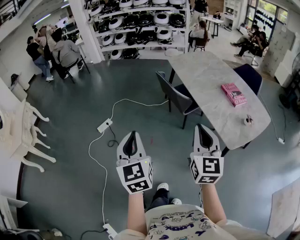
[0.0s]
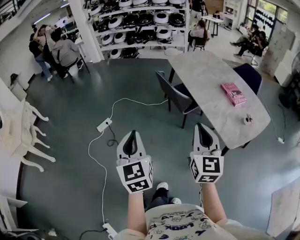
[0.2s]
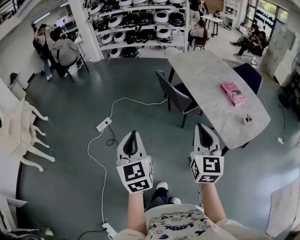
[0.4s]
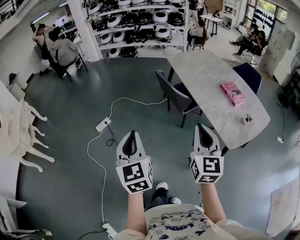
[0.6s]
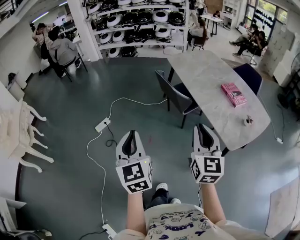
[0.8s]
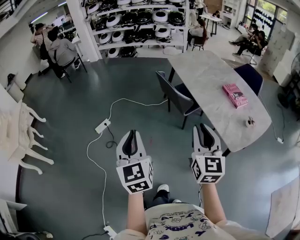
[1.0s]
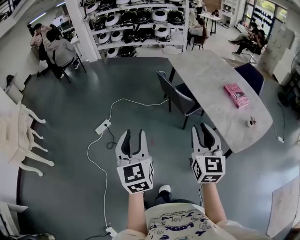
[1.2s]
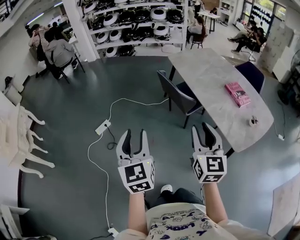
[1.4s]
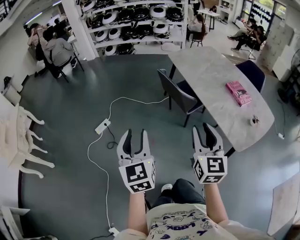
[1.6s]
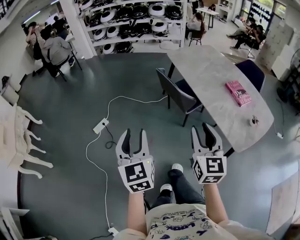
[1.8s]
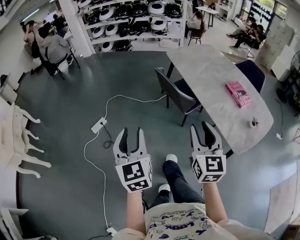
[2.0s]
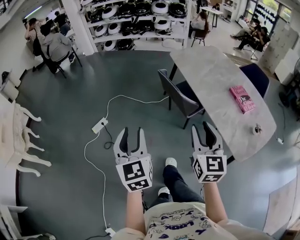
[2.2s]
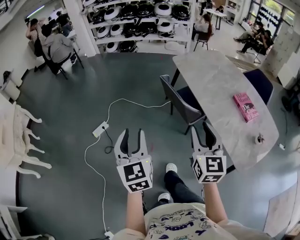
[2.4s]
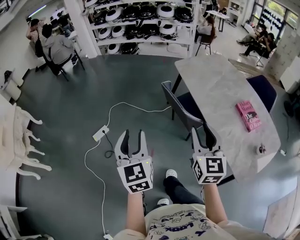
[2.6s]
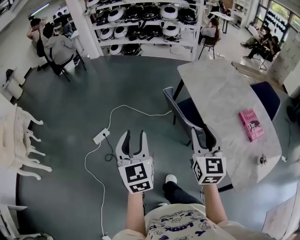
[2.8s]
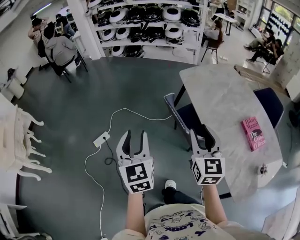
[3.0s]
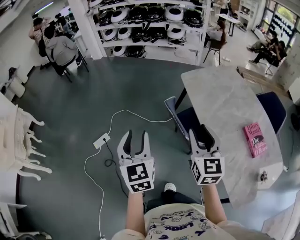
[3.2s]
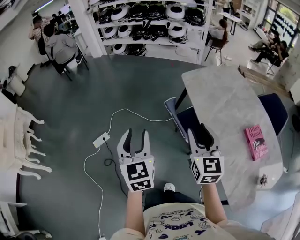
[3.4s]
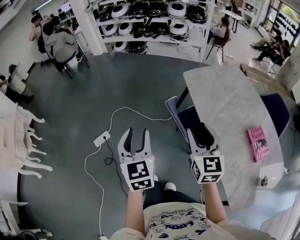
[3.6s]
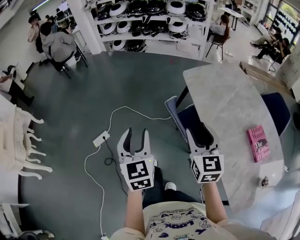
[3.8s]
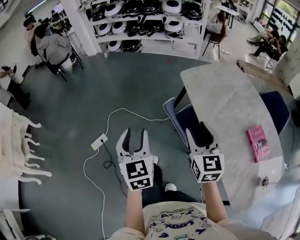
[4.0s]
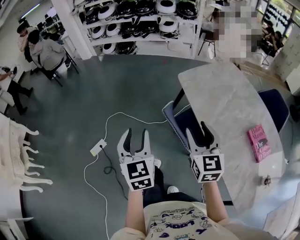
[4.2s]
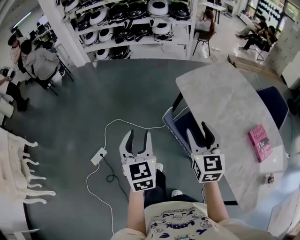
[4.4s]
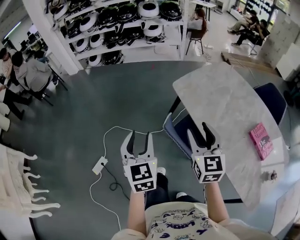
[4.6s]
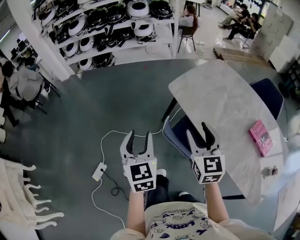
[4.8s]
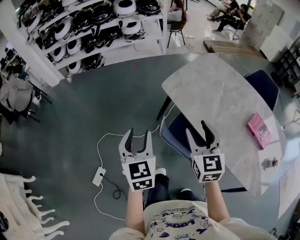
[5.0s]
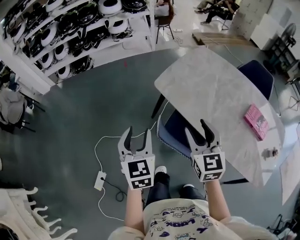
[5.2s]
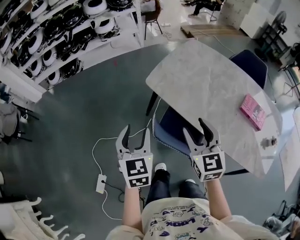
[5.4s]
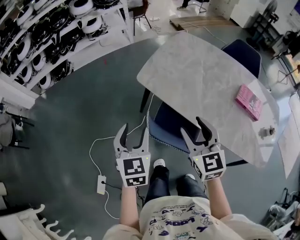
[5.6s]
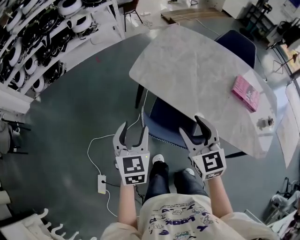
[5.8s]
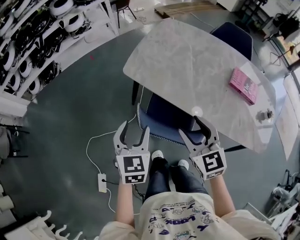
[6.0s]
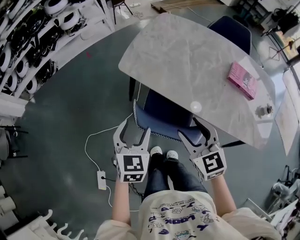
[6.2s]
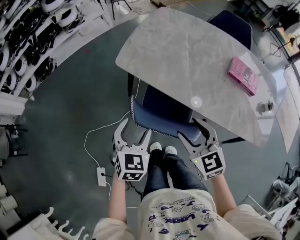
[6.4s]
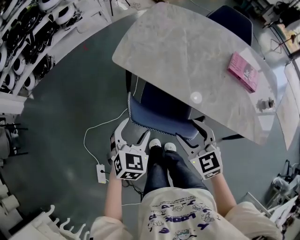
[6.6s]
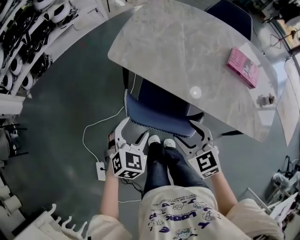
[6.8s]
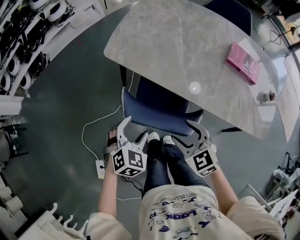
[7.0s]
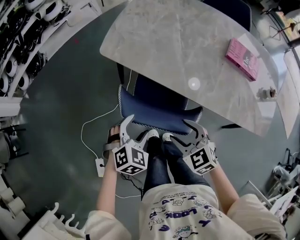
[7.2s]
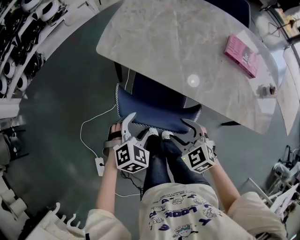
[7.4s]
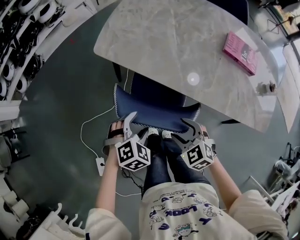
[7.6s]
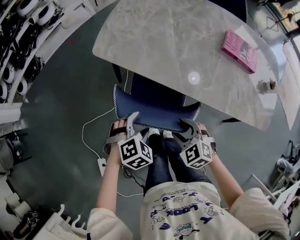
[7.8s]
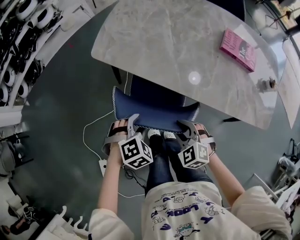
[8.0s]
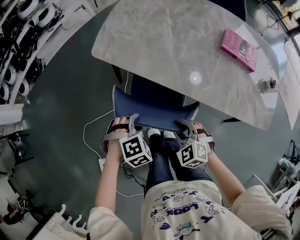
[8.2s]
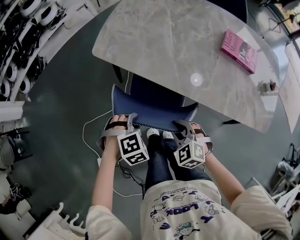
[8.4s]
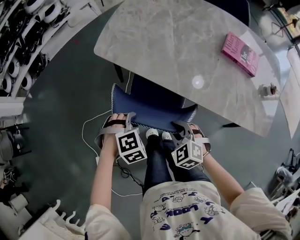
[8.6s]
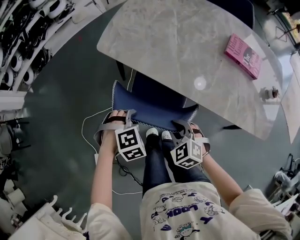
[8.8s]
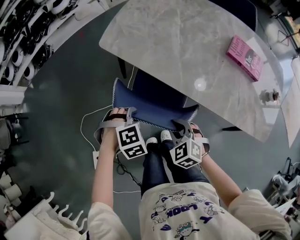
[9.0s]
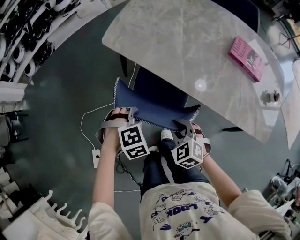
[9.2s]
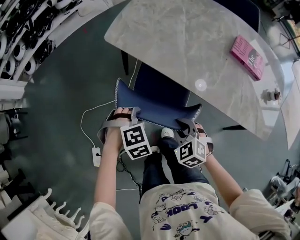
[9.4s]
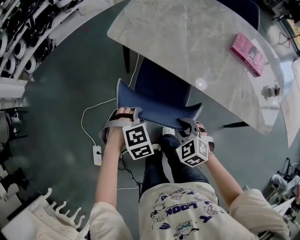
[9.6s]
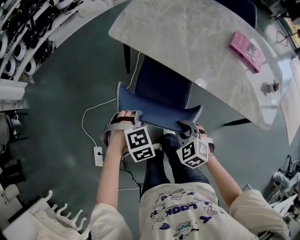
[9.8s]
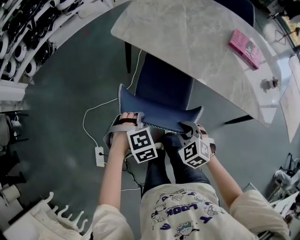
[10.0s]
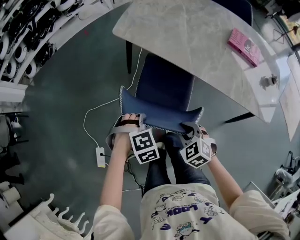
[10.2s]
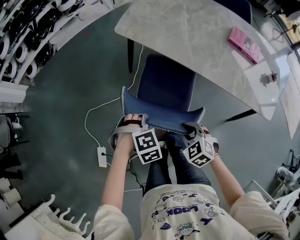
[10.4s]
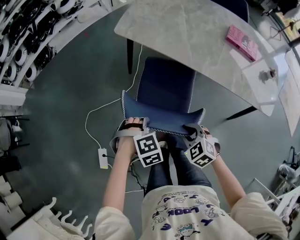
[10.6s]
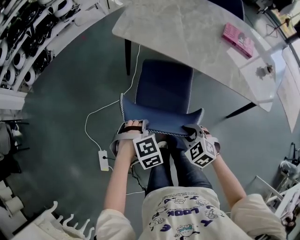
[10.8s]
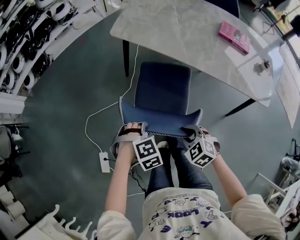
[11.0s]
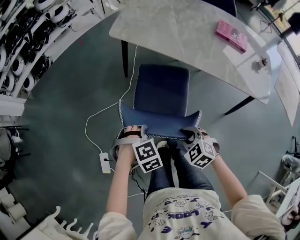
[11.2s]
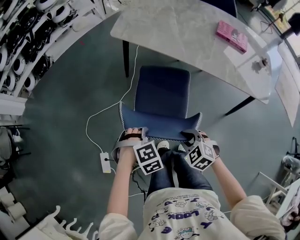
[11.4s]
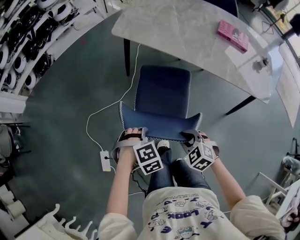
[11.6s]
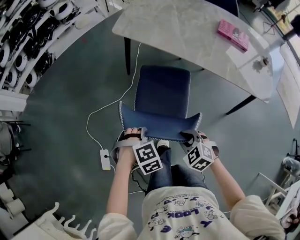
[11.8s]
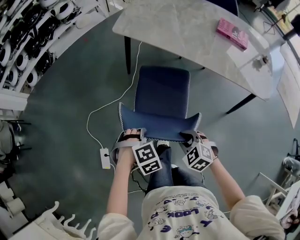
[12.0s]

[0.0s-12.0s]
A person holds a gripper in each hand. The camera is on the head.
0.0s to 1.6s: The right gripper moves forward and to the left, about 10 cm, and opens its fingers. The left gripper travels forward by some 10 cm, and opens up.
1.6s to 3.0s: Both grippers move forward, roughly 35 cm.
3.0s to 4.4s: The grippers both shift forward by some 25 cm.
4.4s to 6.0s: The right gripper heads downward, covering approximately 10 cm, and turns by approximately 20 degrees; the left gripper moves approximately 25 cm, and rotates about 50 degrees.
6.0s to 7.6s: The right gripper moves downward and backward, about 20 cm, and rotates roughly 30 degrees, while the left gripper goes approximately 20 cm downward and to the right, and tips its fingers downward by roughly 30 degrees.
7.6s to 9.0s: The right gripper closes. Meanwhile the left gripper turns by approximately 20 degrees, and closes its fingers.
9.0s to 10.4s: Both grippers move backward and to the left, about 15 cm.
10.4s to 12.0s: The right gripper ends up approximately 15 cm from where it was. The left gripper moves some 15 cm.

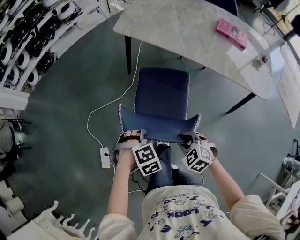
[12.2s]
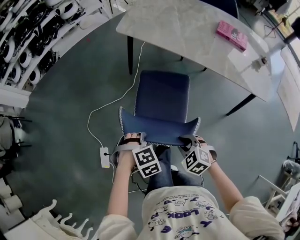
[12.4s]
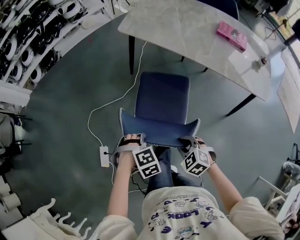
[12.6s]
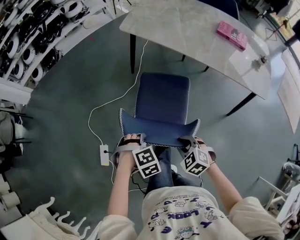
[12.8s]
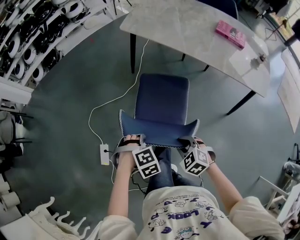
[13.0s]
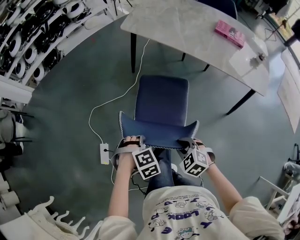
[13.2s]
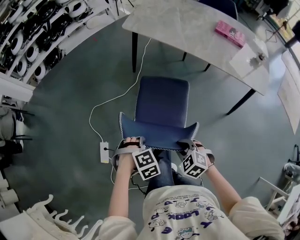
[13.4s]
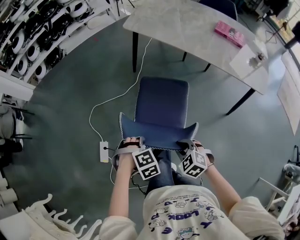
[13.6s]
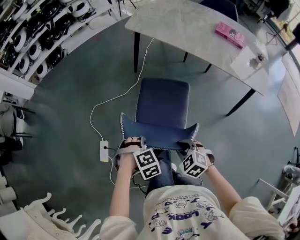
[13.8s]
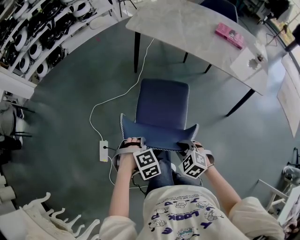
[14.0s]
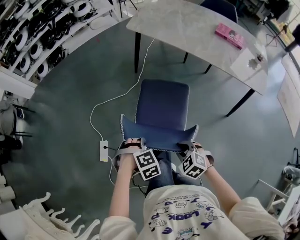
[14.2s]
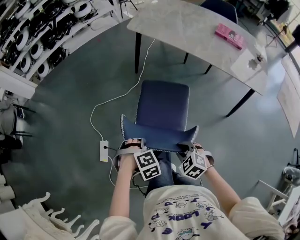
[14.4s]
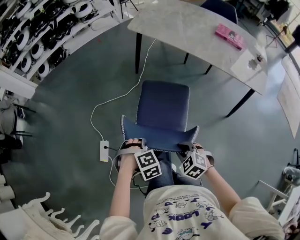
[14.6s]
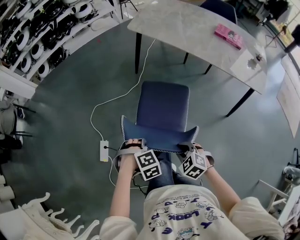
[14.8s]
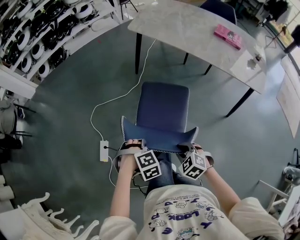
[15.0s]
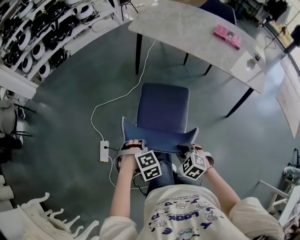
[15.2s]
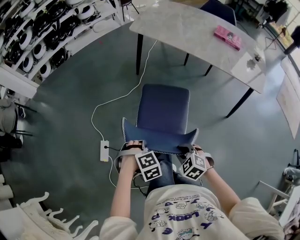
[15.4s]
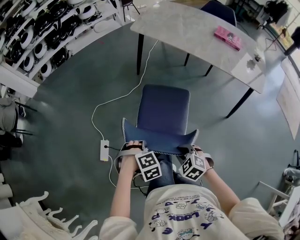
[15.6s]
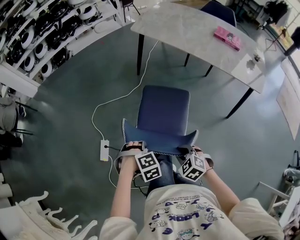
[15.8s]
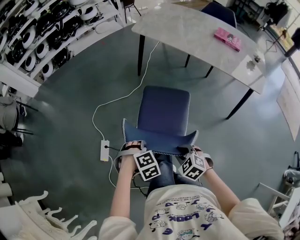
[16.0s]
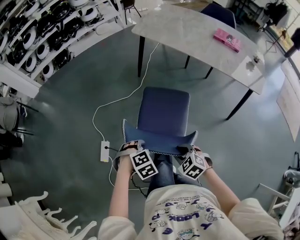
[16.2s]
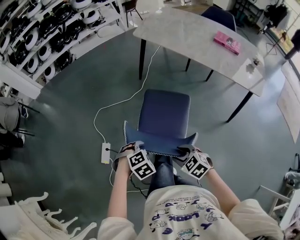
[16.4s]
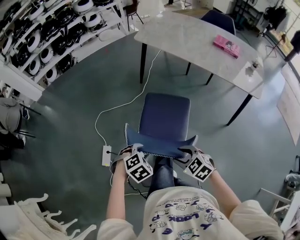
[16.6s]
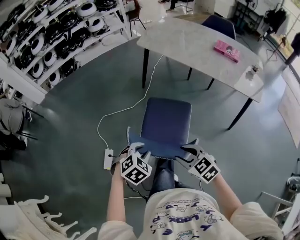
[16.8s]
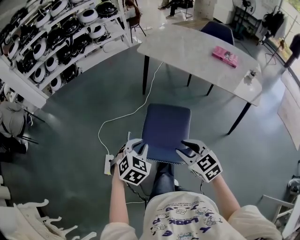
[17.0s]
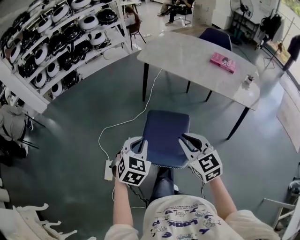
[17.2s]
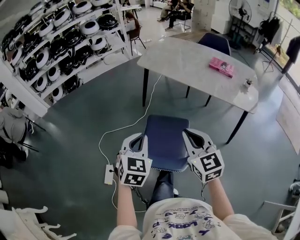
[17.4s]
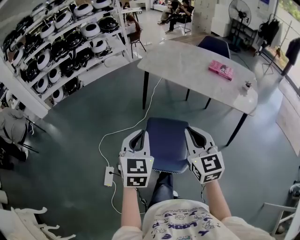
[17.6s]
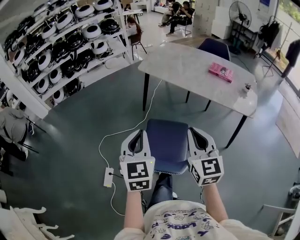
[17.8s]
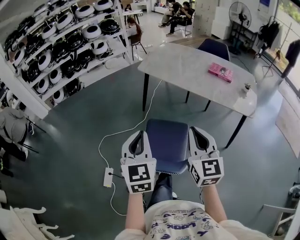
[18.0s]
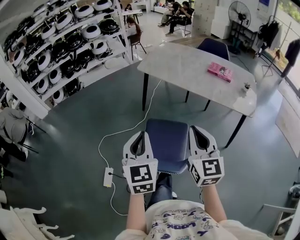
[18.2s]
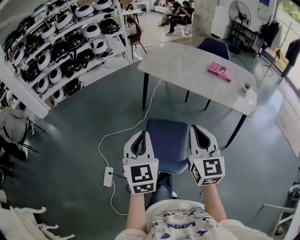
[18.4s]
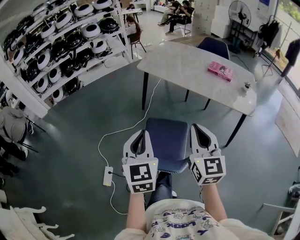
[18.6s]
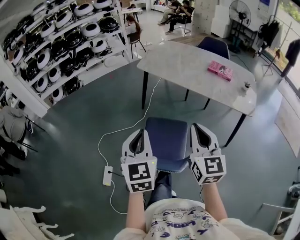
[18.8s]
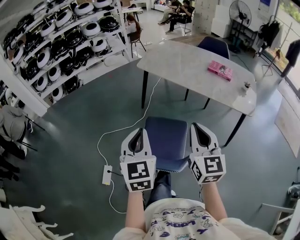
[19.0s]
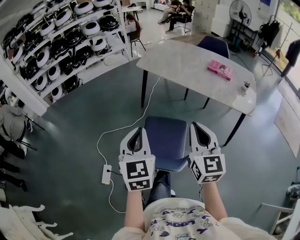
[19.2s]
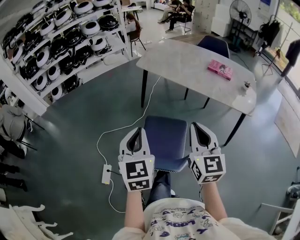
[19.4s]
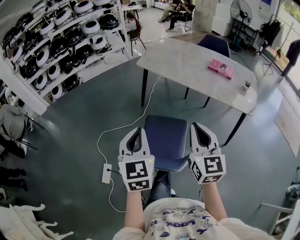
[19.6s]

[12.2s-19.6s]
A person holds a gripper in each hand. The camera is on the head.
12.2s to 13.6s: The left gripper shifts by approximately 15 cm. Meanwhile the right gripper moves some 15 cm.
13.6s to 15.2s: The left gripper changes place by some 5 cm, while the right gripper ends up about 5 cm from where it was.
15.2s to 16.6s: The left gripper rotates about 20 degrees; the right gripper changes place by about 5 cm, and opens its fingers.
16.6s to 18.2s: Both grippers move upward, roughly 30 cm. The right gripper tips its fingers upward by some 50 degrees, and closes its fingers. Meanwhile the left gripper points its fingers approximately 60 degrees further upward, and closes up.
18.2s to 19.6s: The grippers stay close to where they were, moving slightly.

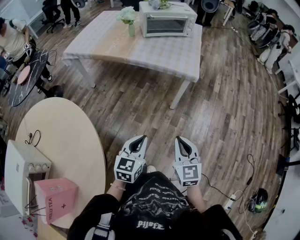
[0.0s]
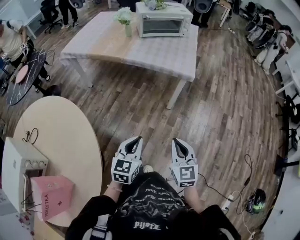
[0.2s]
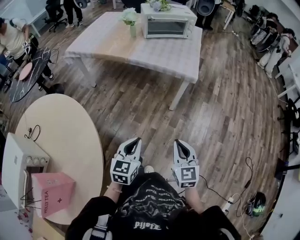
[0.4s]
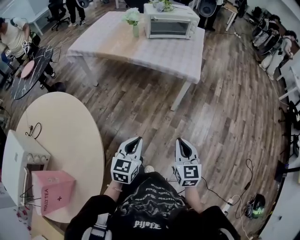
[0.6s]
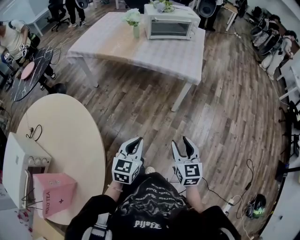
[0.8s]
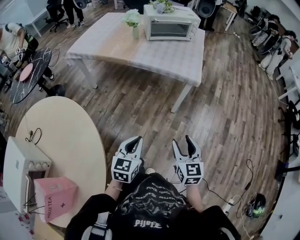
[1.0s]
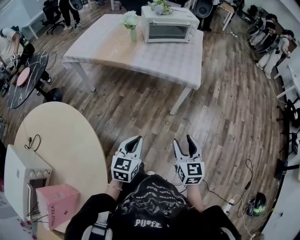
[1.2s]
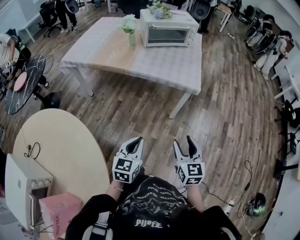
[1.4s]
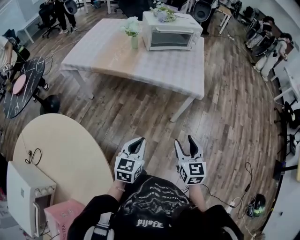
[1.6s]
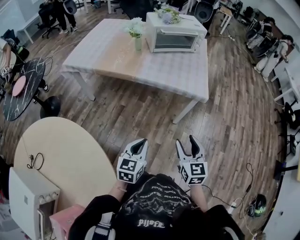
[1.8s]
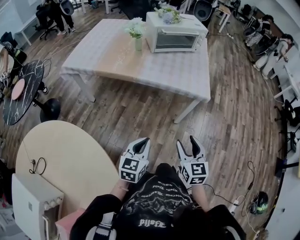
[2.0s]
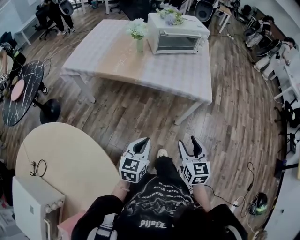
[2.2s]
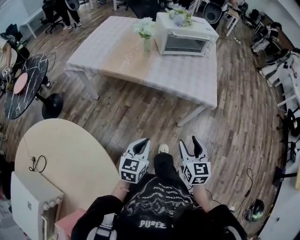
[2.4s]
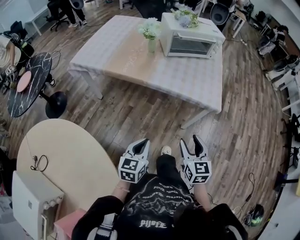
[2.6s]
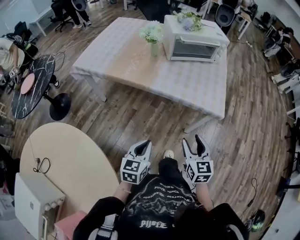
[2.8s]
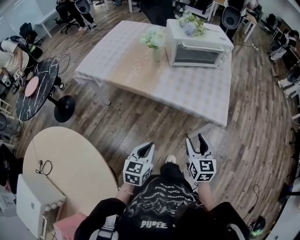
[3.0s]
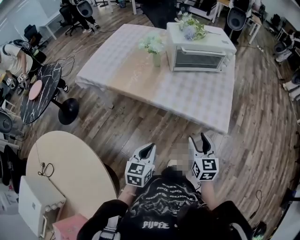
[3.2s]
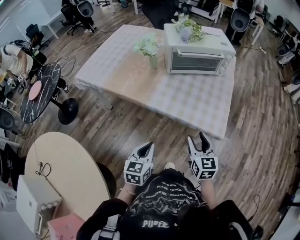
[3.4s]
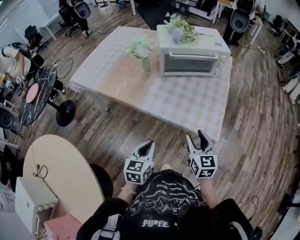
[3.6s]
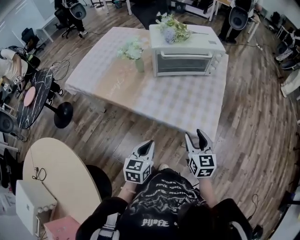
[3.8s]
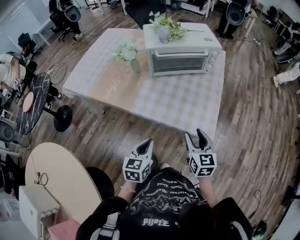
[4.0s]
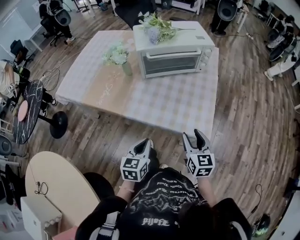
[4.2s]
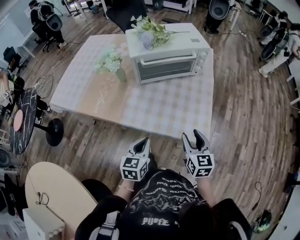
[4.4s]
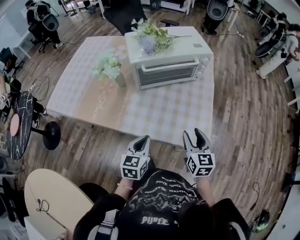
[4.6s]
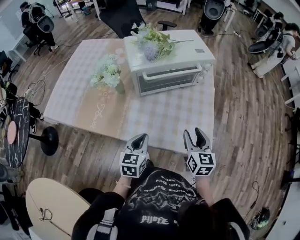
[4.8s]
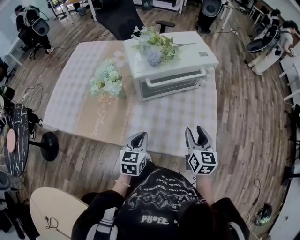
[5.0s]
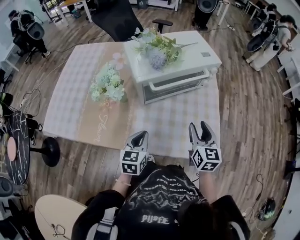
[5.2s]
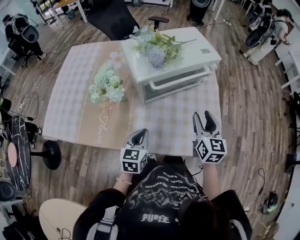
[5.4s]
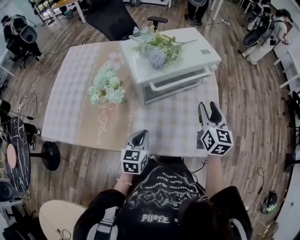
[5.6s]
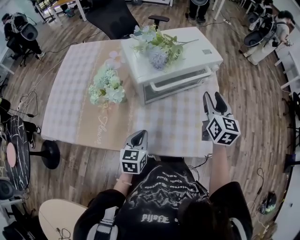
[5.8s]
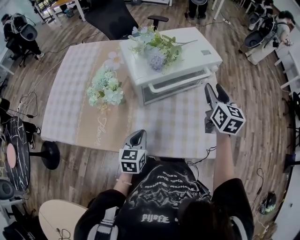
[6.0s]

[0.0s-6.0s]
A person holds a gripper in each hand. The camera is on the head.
0.0s to 1.6s: The two grippers go roughly 15 cm forward and to the left. The right gripper opens its fingers.
1.6s to 3.0s: The grippers both shift forward by approximately 20 cm.
3.0s to 4.4s: The two grippers go approximately 25 cm forward and to the right.
4.4s to 6.0s: The right gripper moves forward, approximately 30 cm. The left gripper heads forward and to the left, covering some 25 cm.
